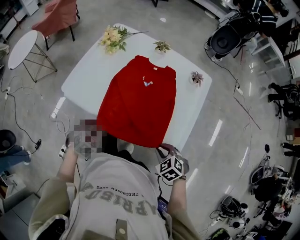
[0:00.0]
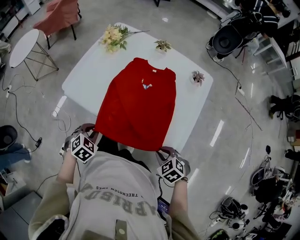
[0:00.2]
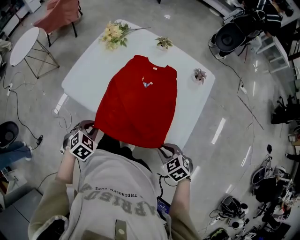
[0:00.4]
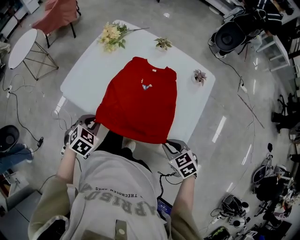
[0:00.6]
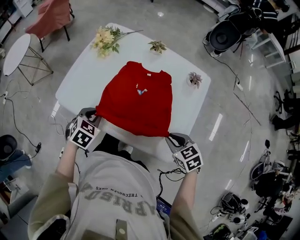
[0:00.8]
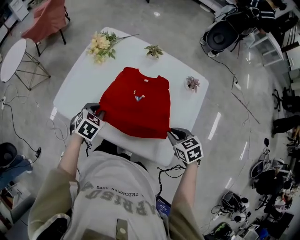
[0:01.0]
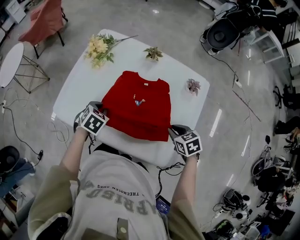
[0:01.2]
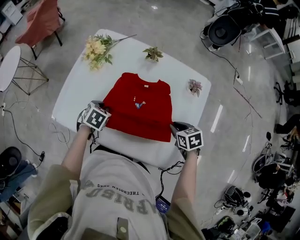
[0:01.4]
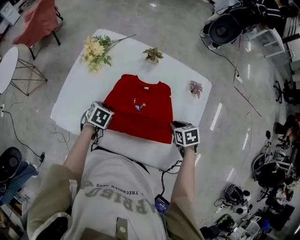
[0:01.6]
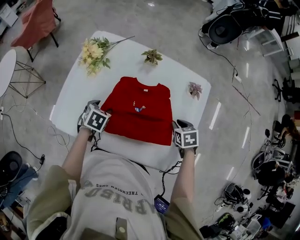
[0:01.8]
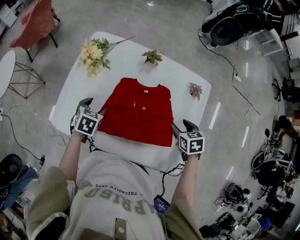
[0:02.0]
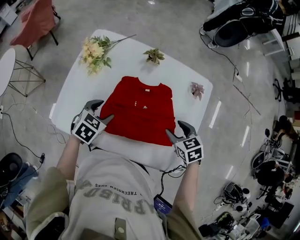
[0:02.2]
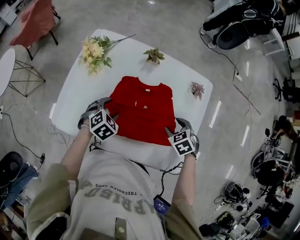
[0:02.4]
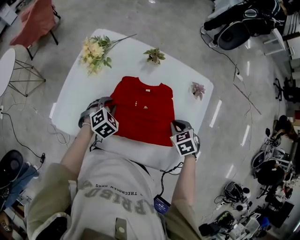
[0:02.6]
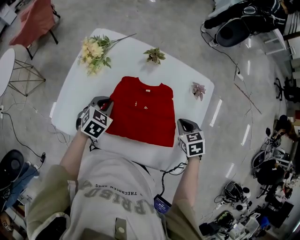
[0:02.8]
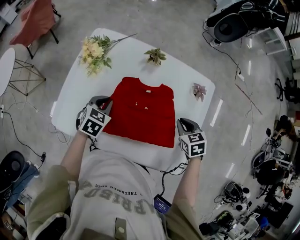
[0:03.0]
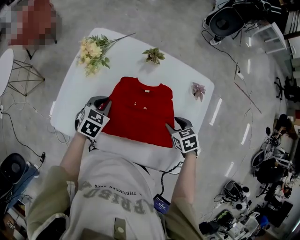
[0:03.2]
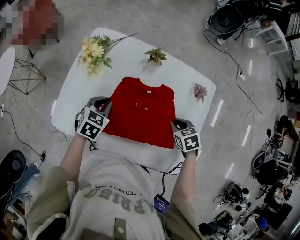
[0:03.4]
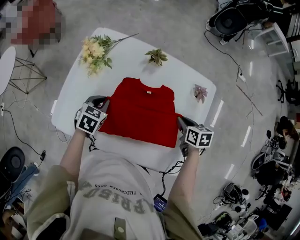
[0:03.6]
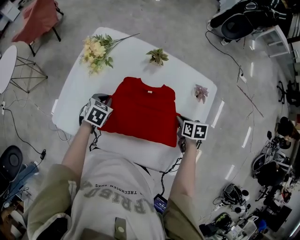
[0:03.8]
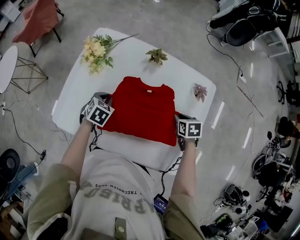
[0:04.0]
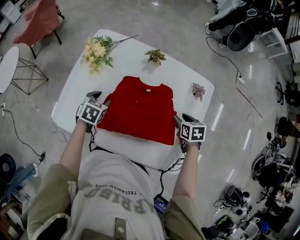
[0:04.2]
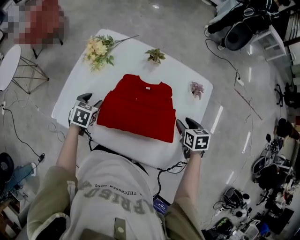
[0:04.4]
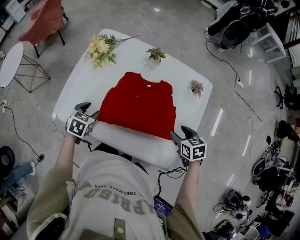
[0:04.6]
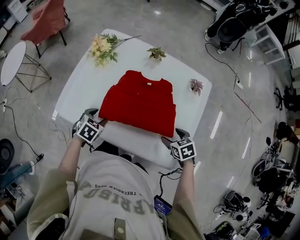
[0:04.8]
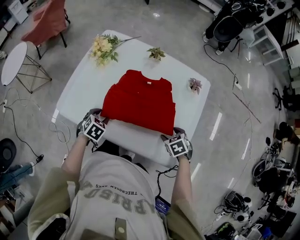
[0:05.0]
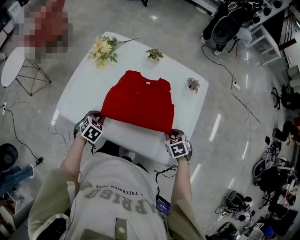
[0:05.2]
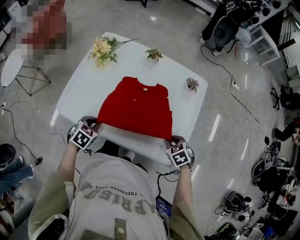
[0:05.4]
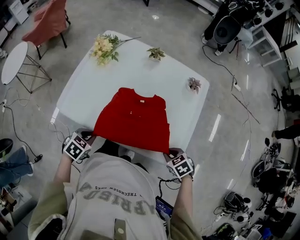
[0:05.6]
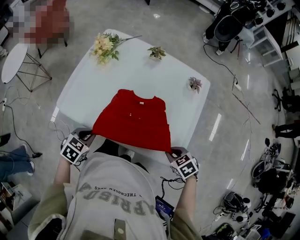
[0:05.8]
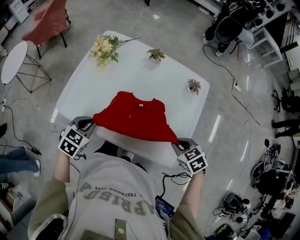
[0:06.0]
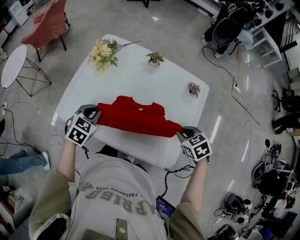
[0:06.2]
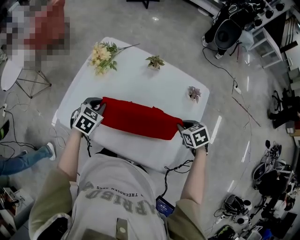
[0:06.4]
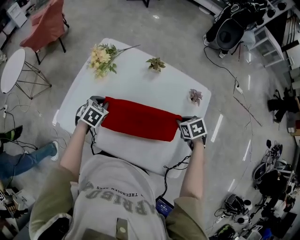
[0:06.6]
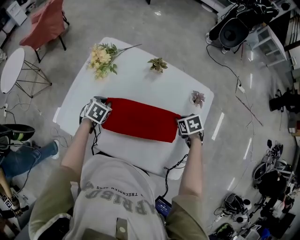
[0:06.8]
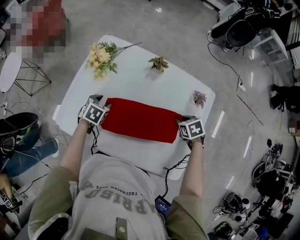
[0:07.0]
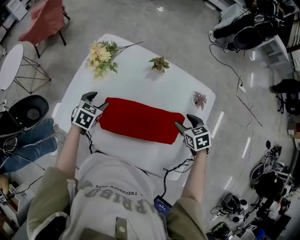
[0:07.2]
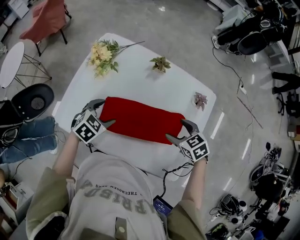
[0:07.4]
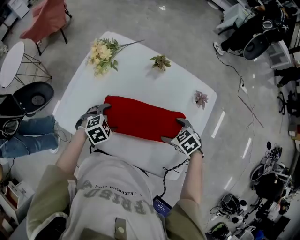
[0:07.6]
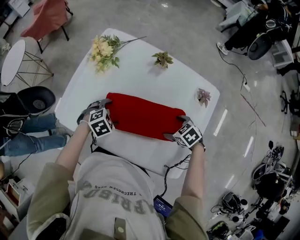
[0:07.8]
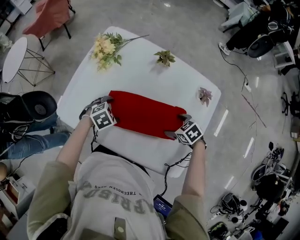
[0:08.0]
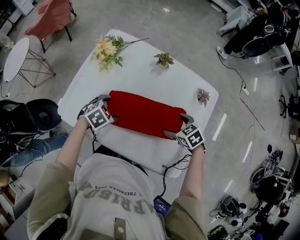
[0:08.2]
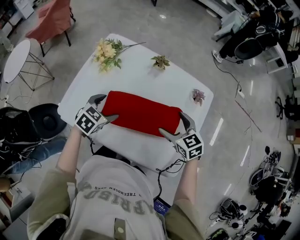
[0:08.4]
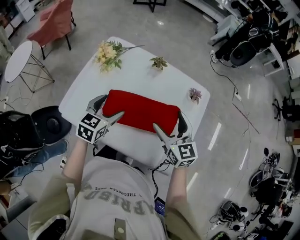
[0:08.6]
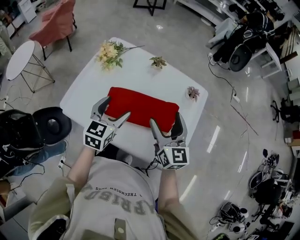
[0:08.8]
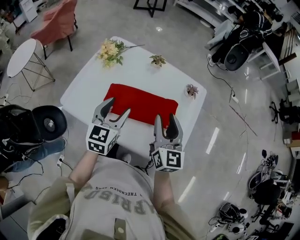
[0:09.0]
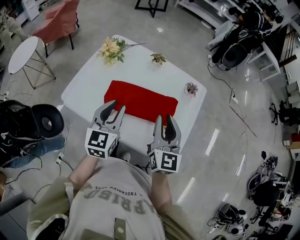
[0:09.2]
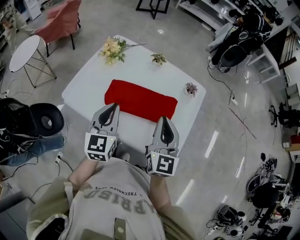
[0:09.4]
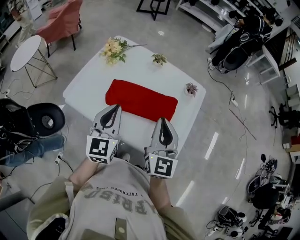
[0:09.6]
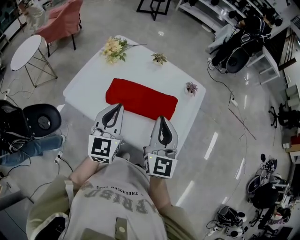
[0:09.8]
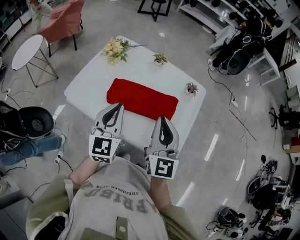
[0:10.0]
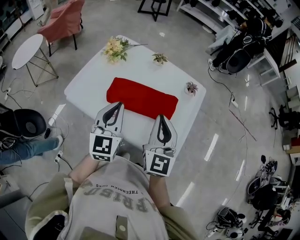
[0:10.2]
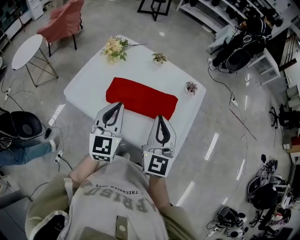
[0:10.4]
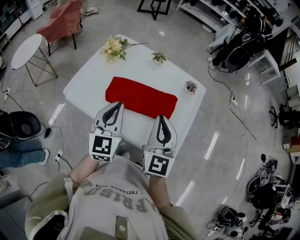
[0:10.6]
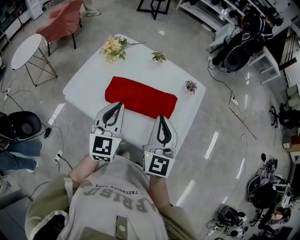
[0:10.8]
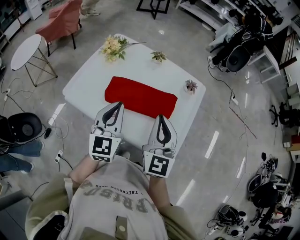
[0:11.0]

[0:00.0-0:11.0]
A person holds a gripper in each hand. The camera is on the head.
0:00.0 to 0:01.6: The two grippers go approximately 25 cm forward and to the right. The right gripper rolls clockwise, seen from behind, by some 40 degrees. Meanwhile the left gripper turns by approximately 20 degrees.
0:01.6 to 0:03.2: The left gripper moves upward and forward, some 5 cm, changes its angle by approximately 20 degrees, and opens, then closes again.
0:03.2 to 0:04.8: The two grippers go roughly 15 cm backward. The left gripper opens.
0:04.8 to 0:06.2: Both grippers move upward, approximately 10 cm. The right gripper reaches approximately 10 cm backward, then returns, and closes. The left gripper travels backward and back again, some 10 cm each way, and closes its fingers.
0:06.2 to 0:07.8: The right gripper moves up and down over approximately 10 cm, changing direction 2 times, and opens its fingers. The left gripper swings up and down, about 10 cm each way, with 2 reversals, changes its angle by some 30 degrees, and opens.
0:07.8 to 0:09.4: Both grippers move upward, roughly 25 cm. The left gripper tilts its fingers approximately 60 degrees upward, and closes up. The right gripper angles its fingers upward, by roughly 70 degrees, and closes.
0:09.4 to 0:11.0: The grippers stay close to where they were, moving slightly.

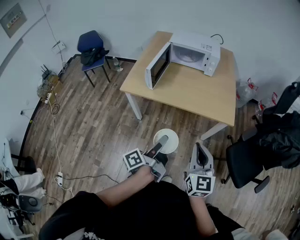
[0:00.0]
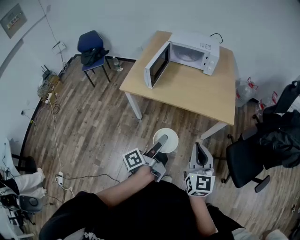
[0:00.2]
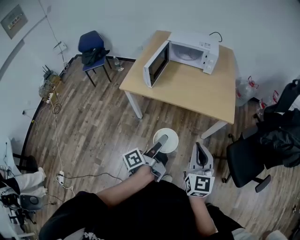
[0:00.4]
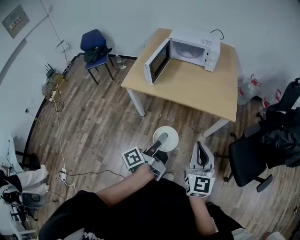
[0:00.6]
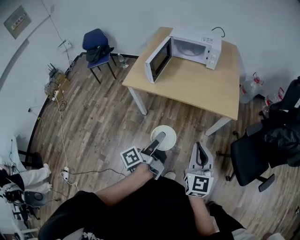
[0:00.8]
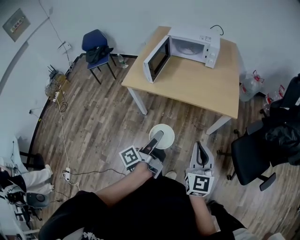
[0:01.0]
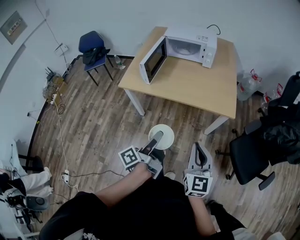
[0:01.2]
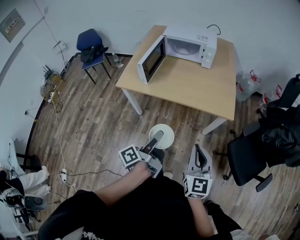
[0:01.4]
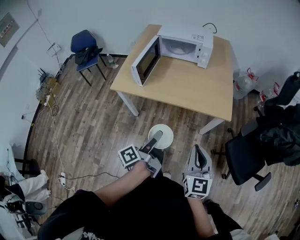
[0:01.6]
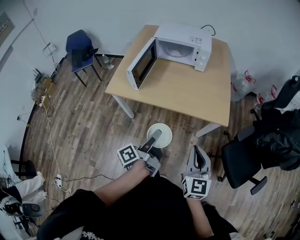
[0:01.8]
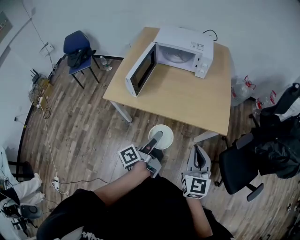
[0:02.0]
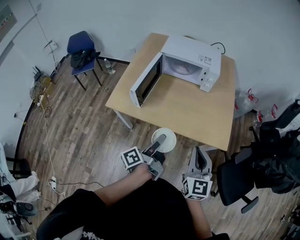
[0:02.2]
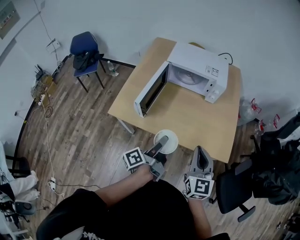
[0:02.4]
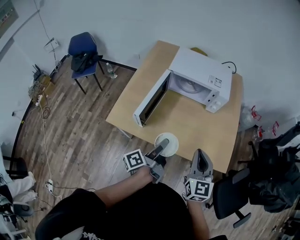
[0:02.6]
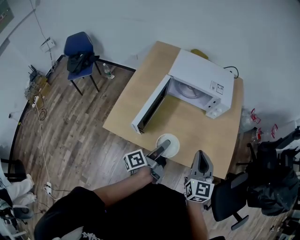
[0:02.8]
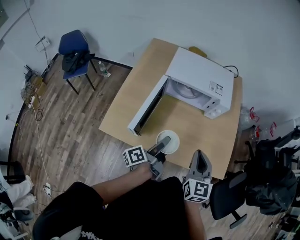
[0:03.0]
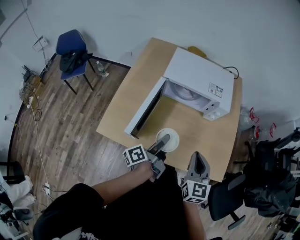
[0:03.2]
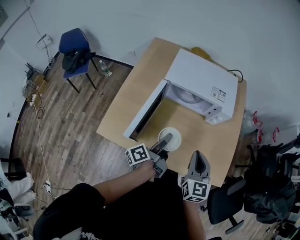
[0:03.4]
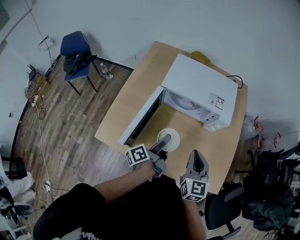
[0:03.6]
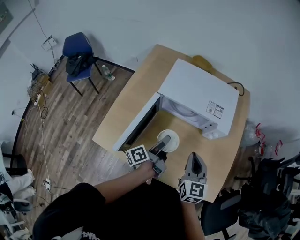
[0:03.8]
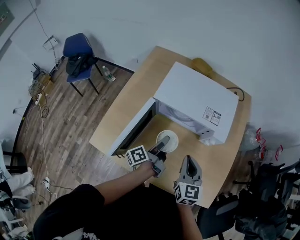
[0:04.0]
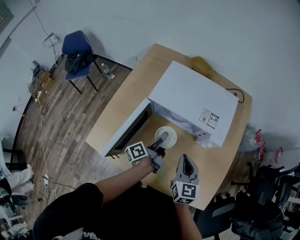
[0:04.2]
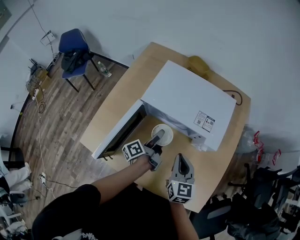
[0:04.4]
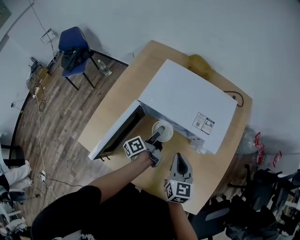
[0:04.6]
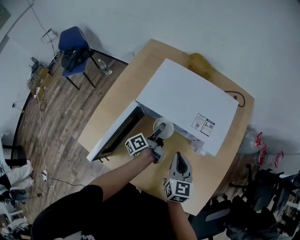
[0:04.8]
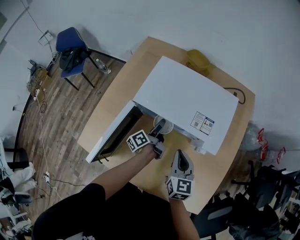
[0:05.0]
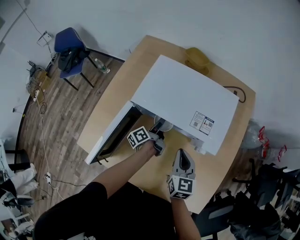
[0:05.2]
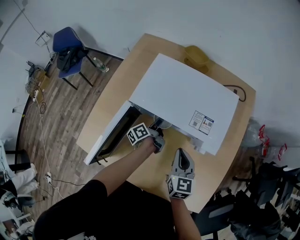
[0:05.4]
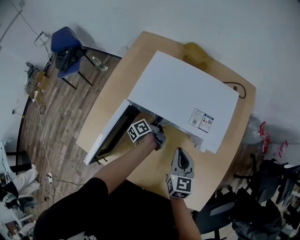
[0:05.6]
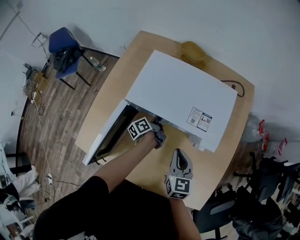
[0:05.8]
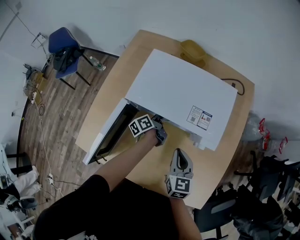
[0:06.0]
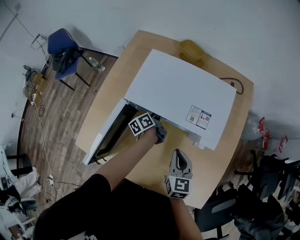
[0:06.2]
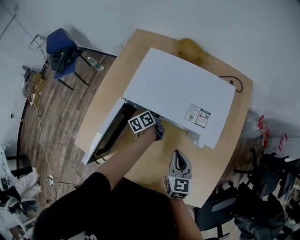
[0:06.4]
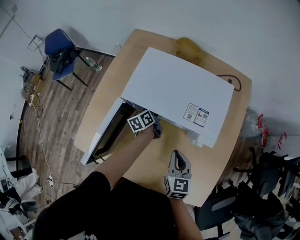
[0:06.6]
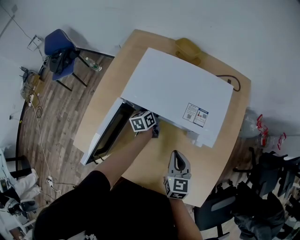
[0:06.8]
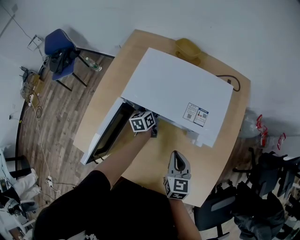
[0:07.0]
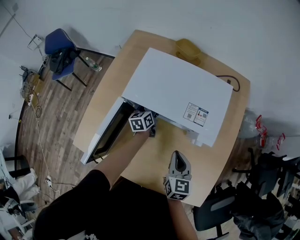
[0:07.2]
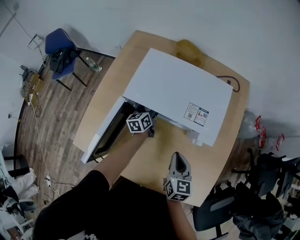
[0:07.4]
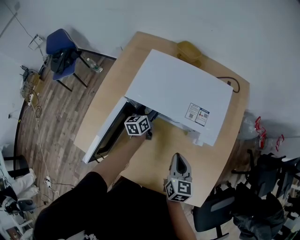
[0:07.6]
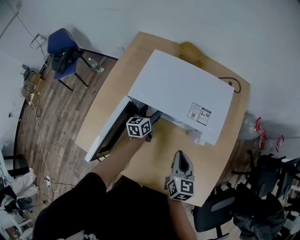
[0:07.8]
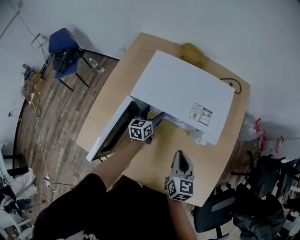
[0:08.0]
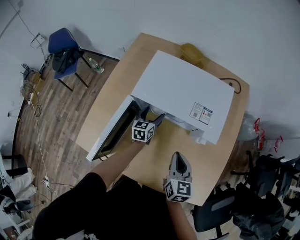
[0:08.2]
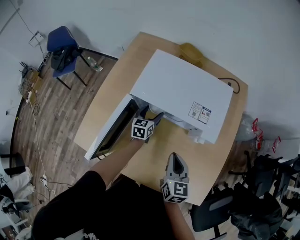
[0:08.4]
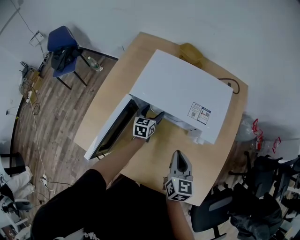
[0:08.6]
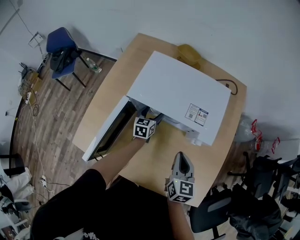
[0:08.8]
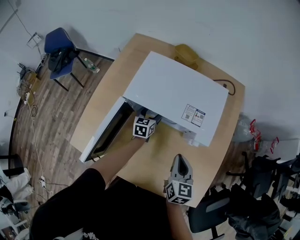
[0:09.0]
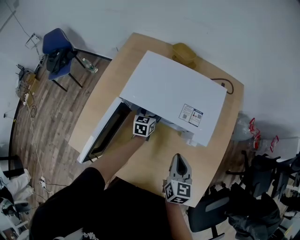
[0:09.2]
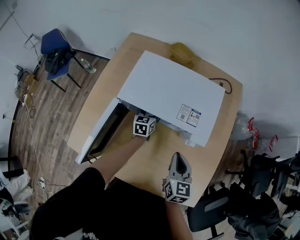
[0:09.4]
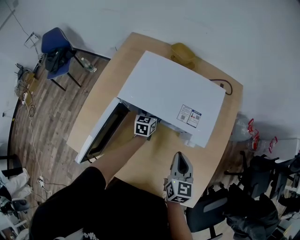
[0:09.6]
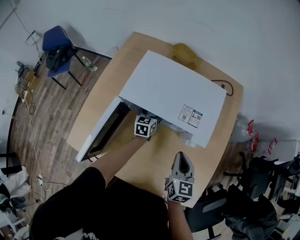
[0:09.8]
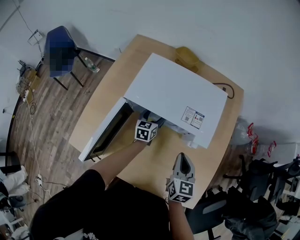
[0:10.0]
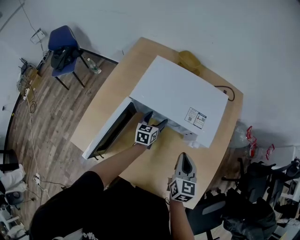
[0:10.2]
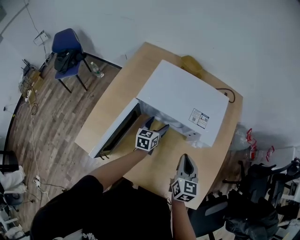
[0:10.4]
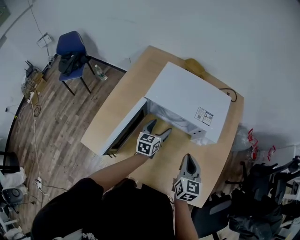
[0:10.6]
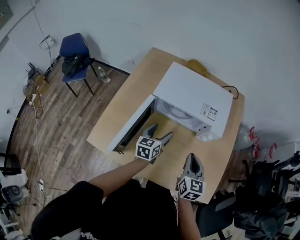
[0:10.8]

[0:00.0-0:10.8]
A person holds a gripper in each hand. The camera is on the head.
0:00.0 to 0:01.6: The right gripper travels to the right by approximately 5 cm. Meanwhile the left gripper shifts by about 5 cm.
0:01.6 to 0:03.0: The grippers both shift forward by approximately 35 cm.
0:03.0 to 0:04.6: Both grippers travel together forward and downward, roughly 25 cm.
0:04.6 to 0:06.2: The left gripper is displaced forward and downward by about 15 cm, and changes its angle by approximately 20 degrees; the right gripper moves about 5 cm.
0:06.2 to 0:07.8: The left gripper swivels roughly 40 degrees, and opens its fingers.
0:07.8 to 0:09.2: The left gripper ends up about 5 cm from where it was.
0:09.2 to 0:10.8: The left gripper shifts approximately 20 cm backward and upward. The right gripper is displaced backward by some 5 cm.

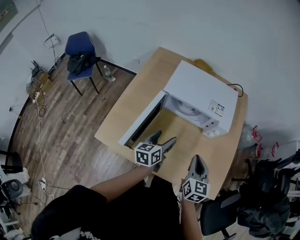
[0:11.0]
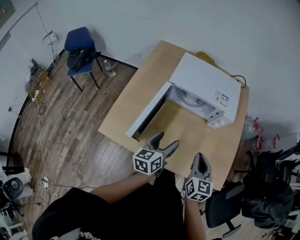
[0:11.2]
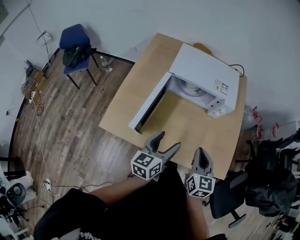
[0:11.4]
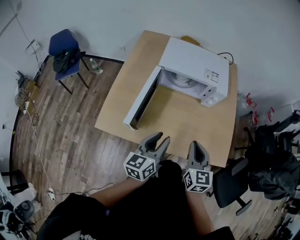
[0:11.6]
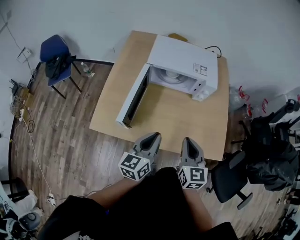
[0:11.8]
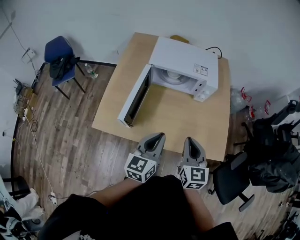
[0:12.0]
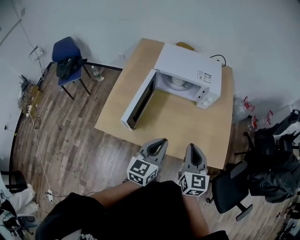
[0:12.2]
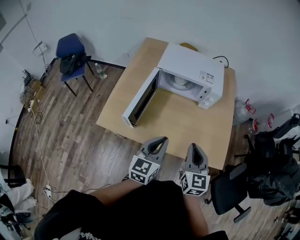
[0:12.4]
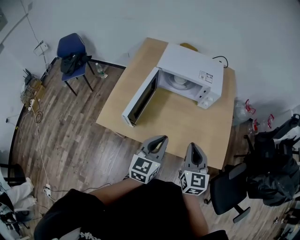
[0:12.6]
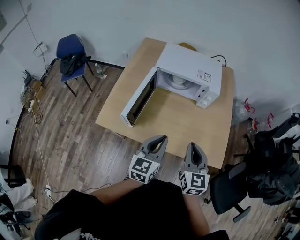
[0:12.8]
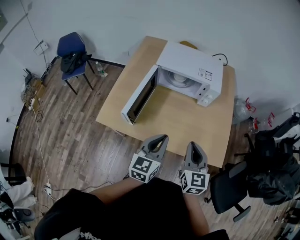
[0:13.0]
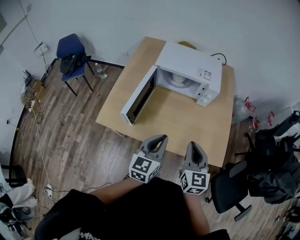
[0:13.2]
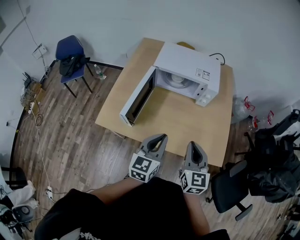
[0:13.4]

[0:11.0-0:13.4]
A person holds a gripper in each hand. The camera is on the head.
0:11.0 to 0:12.2: The right gripper shifts roughly 15 cm backward. The left gripper moves backward and upward, some 20 cm, swivels roughly 20 degrees, and closes up.
0:12.2 to 0:13.4: There are only small adjustments of the grippers.
